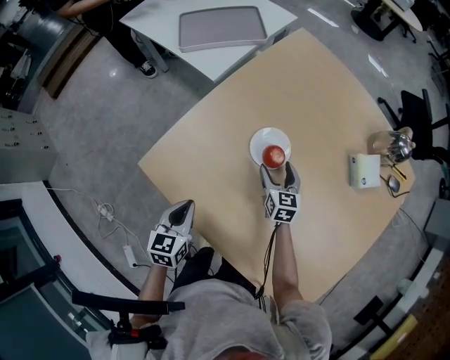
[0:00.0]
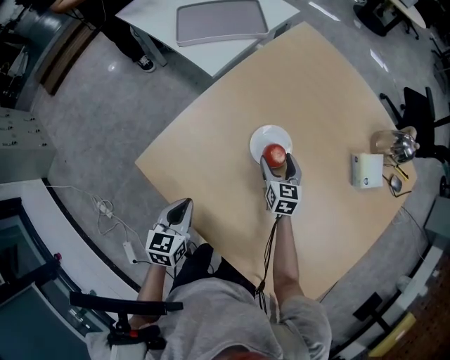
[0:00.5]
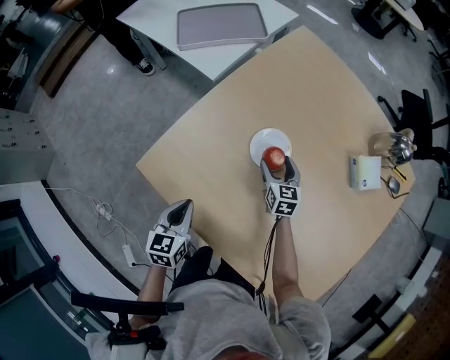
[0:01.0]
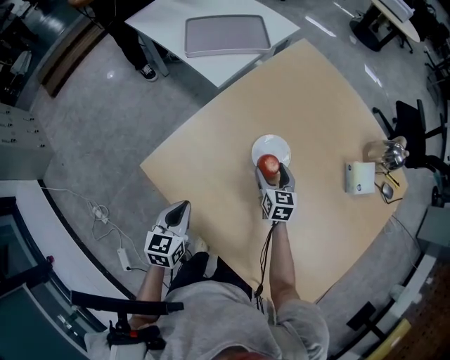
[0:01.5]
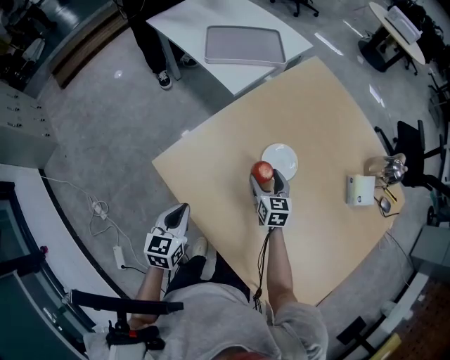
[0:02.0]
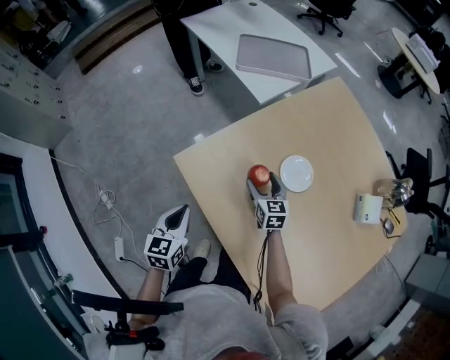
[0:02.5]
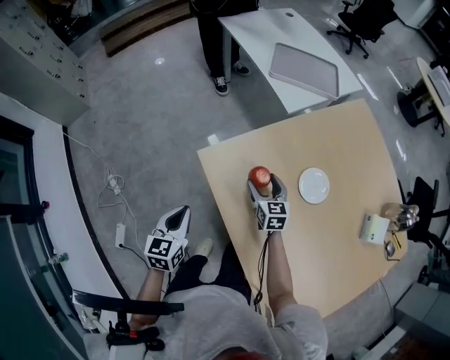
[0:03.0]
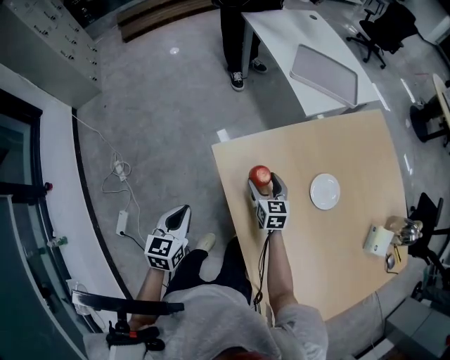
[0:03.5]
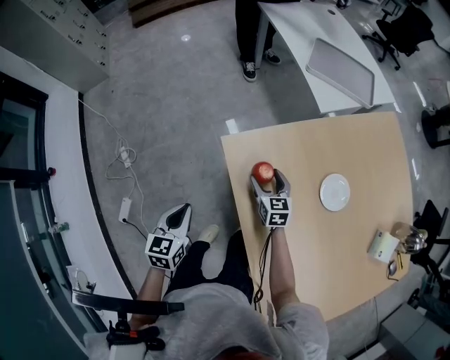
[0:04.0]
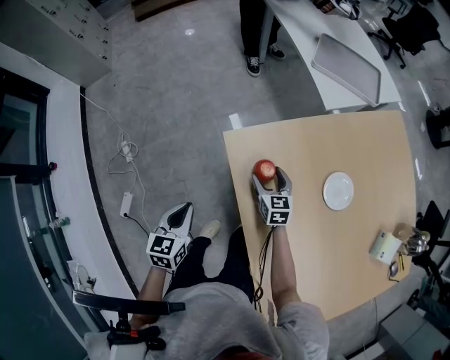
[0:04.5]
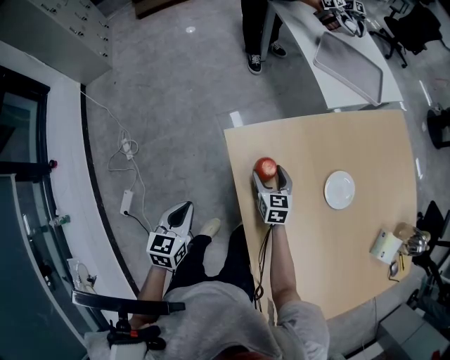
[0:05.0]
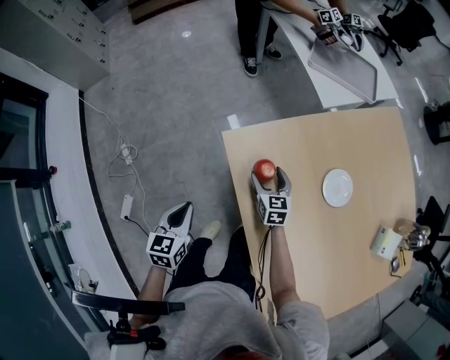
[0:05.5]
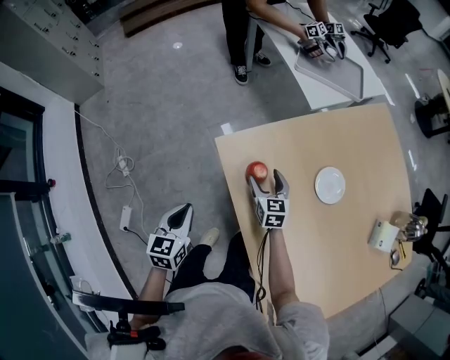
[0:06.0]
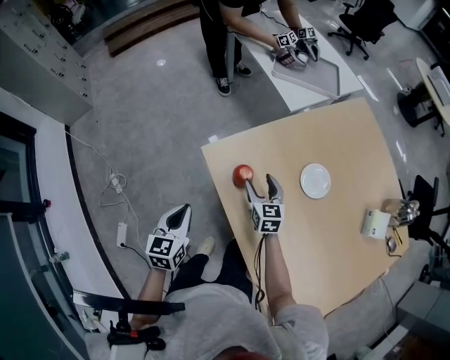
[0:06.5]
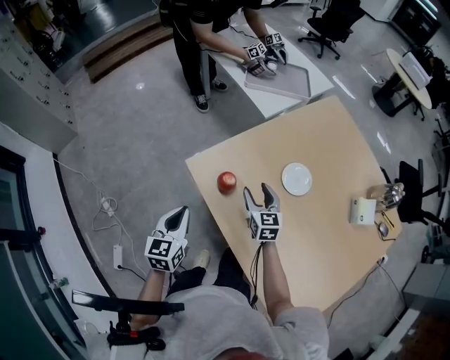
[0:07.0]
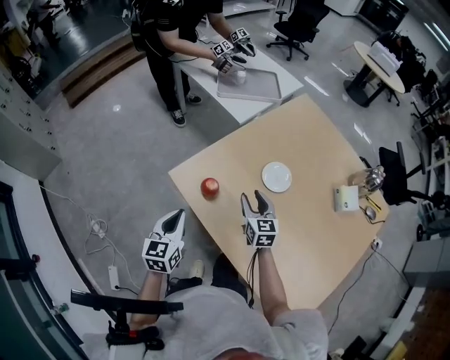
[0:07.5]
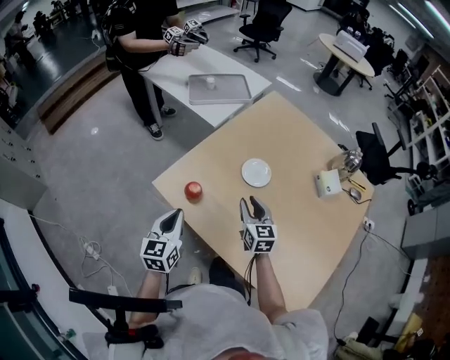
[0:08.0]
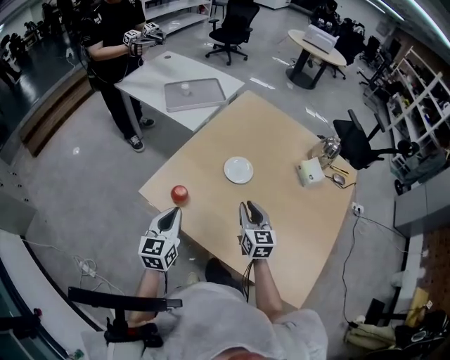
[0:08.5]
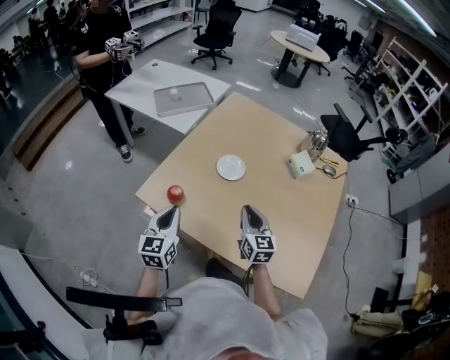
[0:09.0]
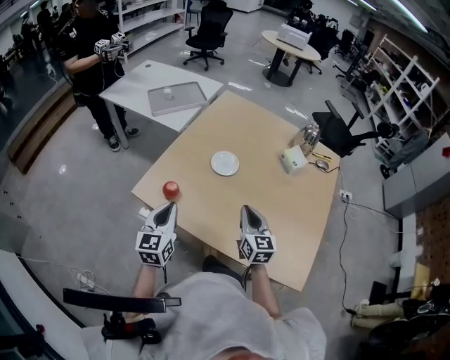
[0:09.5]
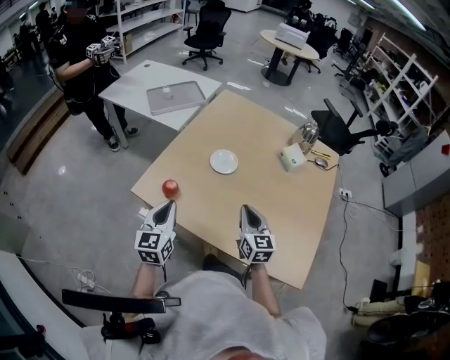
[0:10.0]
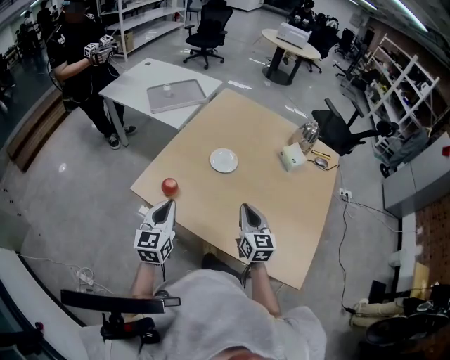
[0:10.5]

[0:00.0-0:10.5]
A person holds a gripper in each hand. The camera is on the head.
0:00.0 to 0:02.0: Both grippers travel together to the left, some 5 cm.
0:02.0 to 0:04.0: The right gripper moves some 25 cm, and swivels roughly 30 degrees. Meanwhile the left gripper changes place by roughly 20 cm, and turns by approximately 20 degrees.
0:04.0 to 0:06.5: The right gripper travels upward by approximately 5 cm. The left gripper moves roughly 5 cm.
0:06.5 to 0:08.5: The right gripper shifts by approximately 25 cm, changes its angle by approximately 30 degrees, and closes up. The left gripper moves about 15 cm, and changes its angle by some 30 degrees.
0:08.5 to 0:10.5: The right gripper heads backward, covering about 10 cm.

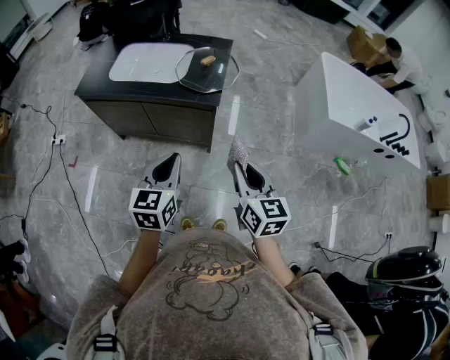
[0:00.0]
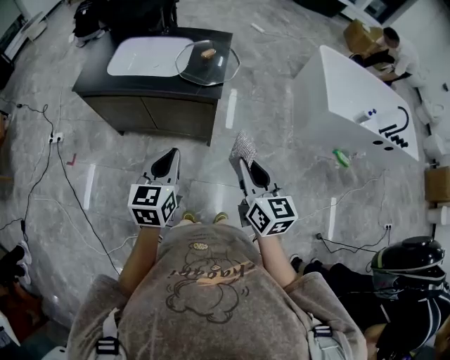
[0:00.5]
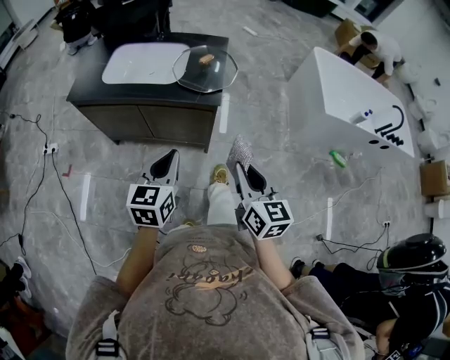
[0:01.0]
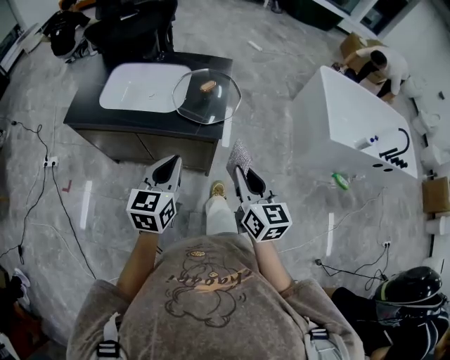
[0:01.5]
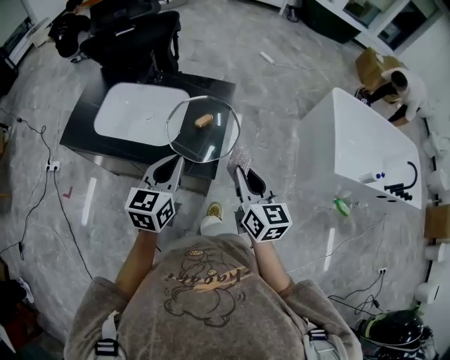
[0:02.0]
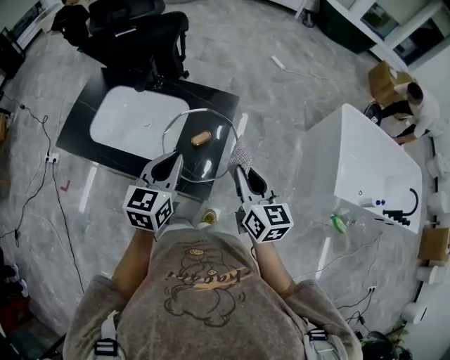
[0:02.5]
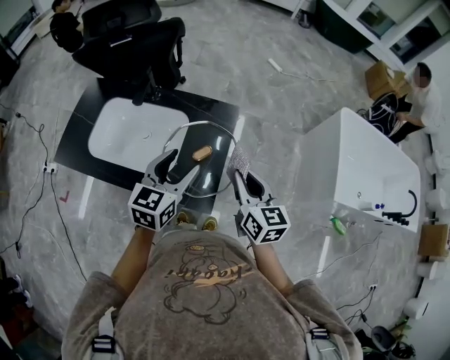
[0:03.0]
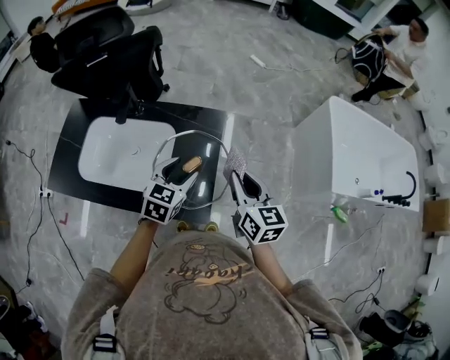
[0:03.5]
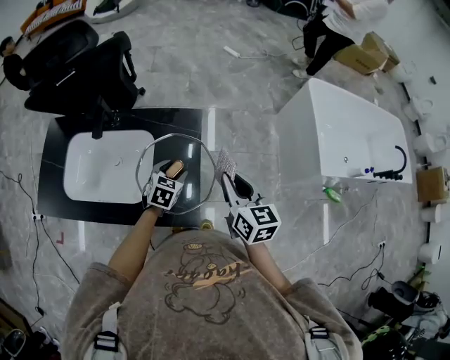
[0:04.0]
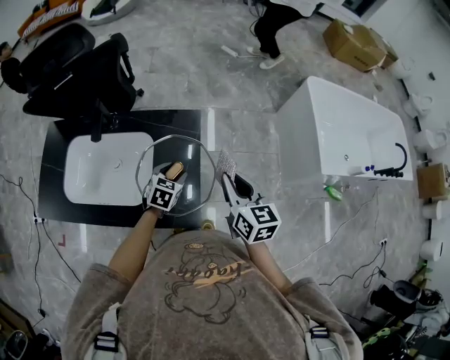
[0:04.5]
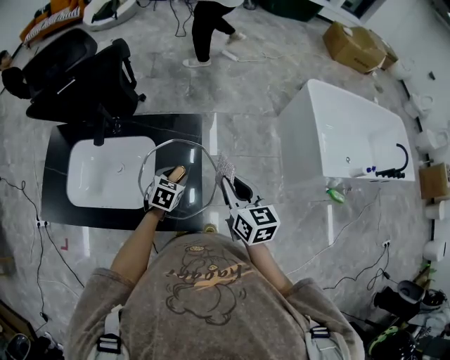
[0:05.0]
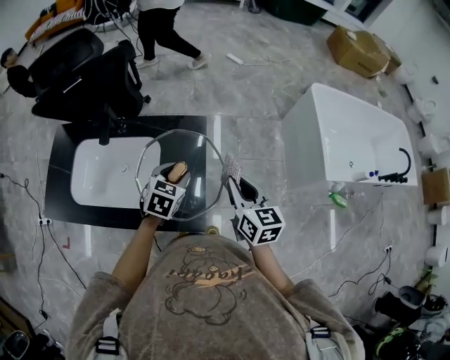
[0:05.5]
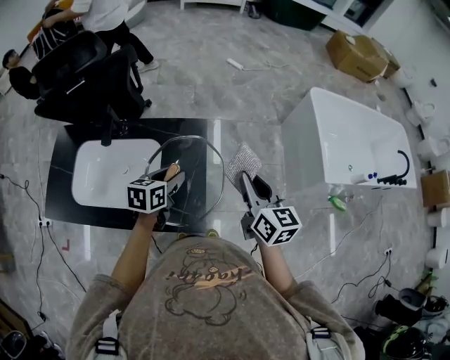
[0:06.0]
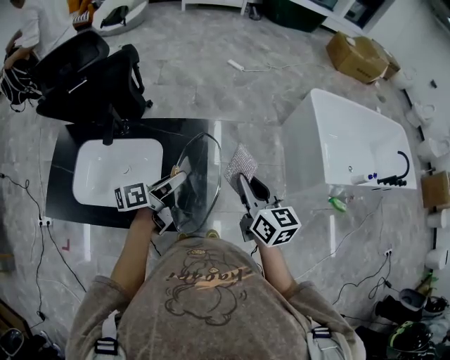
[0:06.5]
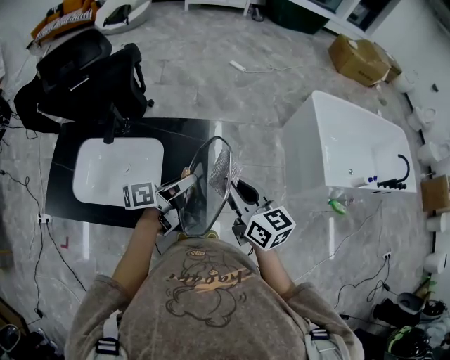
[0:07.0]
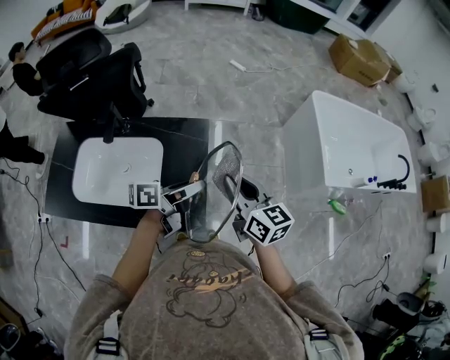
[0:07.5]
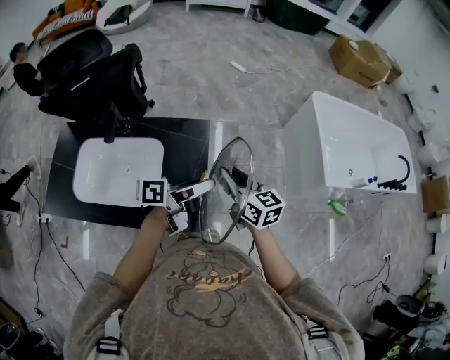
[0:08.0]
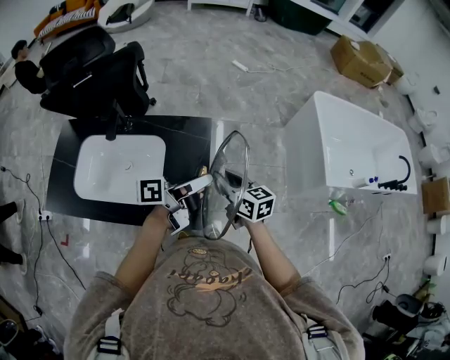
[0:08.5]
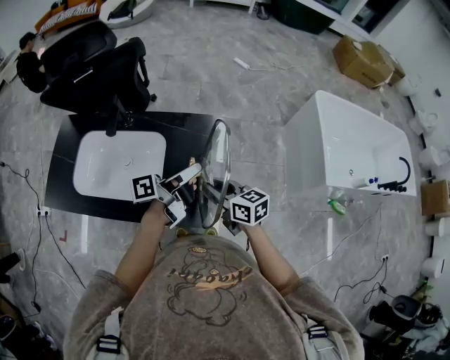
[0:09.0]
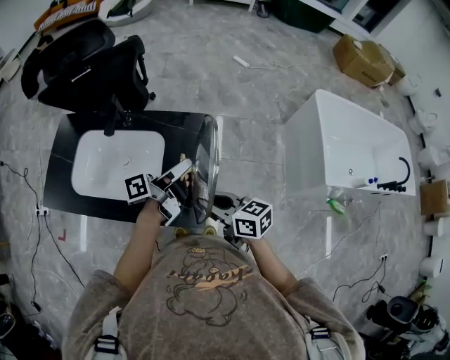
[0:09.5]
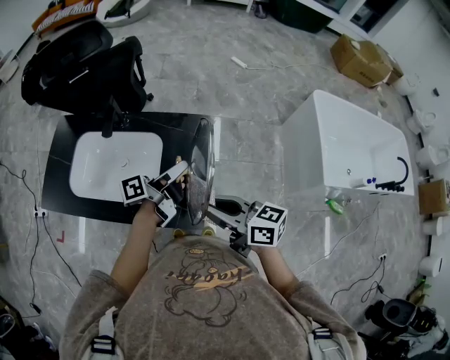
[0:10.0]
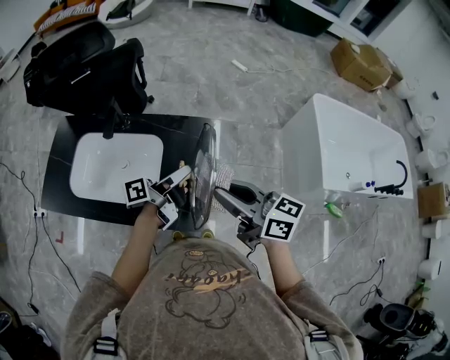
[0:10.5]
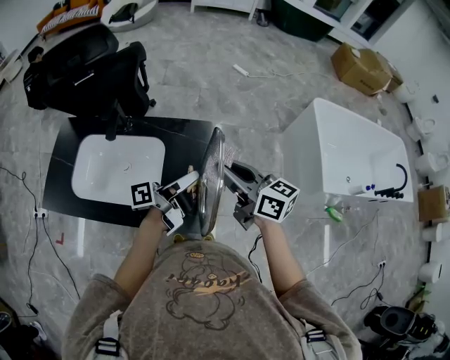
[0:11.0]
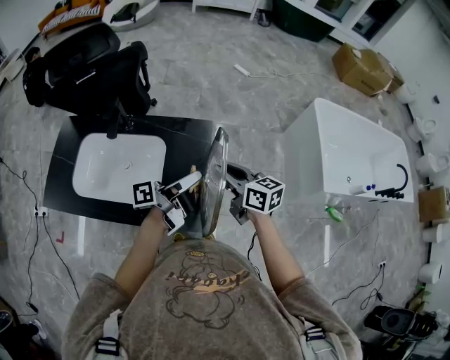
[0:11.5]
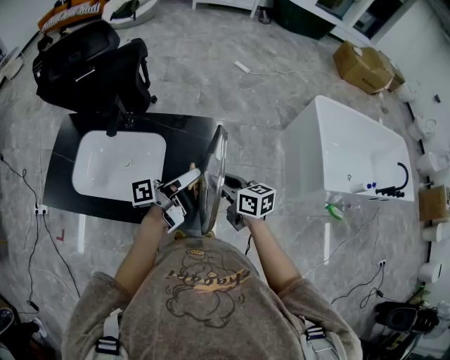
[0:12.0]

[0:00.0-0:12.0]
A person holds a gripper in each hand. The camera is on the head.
0:00.0 to 0:02.0: The two grippers go some 30 cm forward.
0:02.0 to 0:04.0: The right gripper moves forward, some 15 cm, while the left gripper is displaced forward and downward by about 30 cm, swivels approximately 40 degrees, and opens.
0:04.0 to 0:06.0: The left gripper goes about 10 cm upward, and turns by roughly 30 degrees. The right gripper shifts by roughly 5 cm.
0:06.0 to 0:08.0: The left gripper moves to the right and upward, roughly 15 cm, and tilts its fingers about 40 degrees upward; the right gripper shifts approximately 5 cm to the left.
0:08.0 to 0:10.0: The right gripper moves roughly 5 cm downward and comes back, and changes its angle by approximately 30 degrees. Meanwhile the left gripper shifts by about 10 cm, and swivels some 20 degrees.
0:10.0 to 0:12.0: The right gripper shifts approximately 15 cm forward and downward.

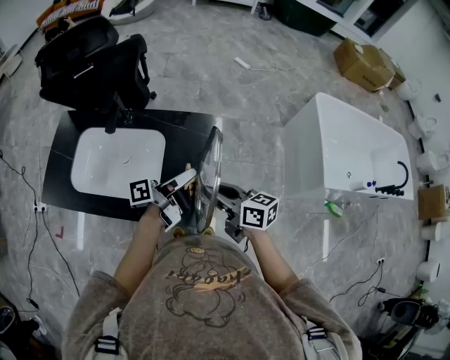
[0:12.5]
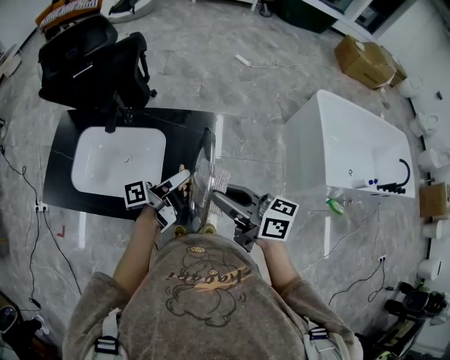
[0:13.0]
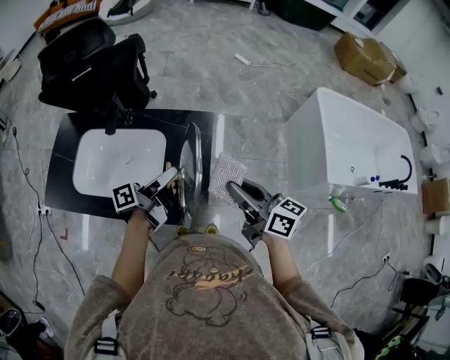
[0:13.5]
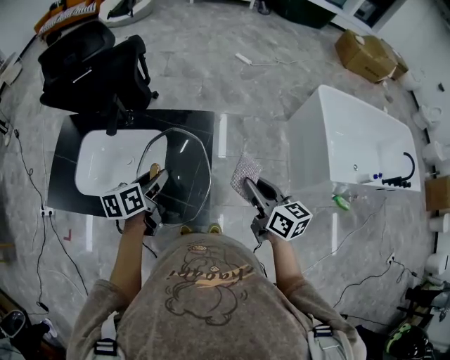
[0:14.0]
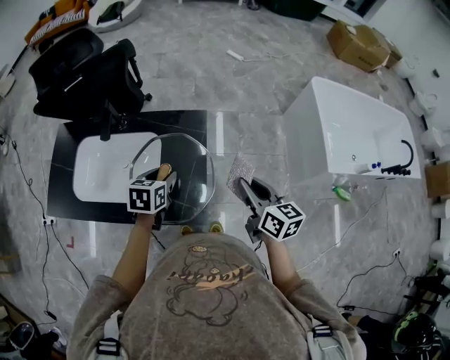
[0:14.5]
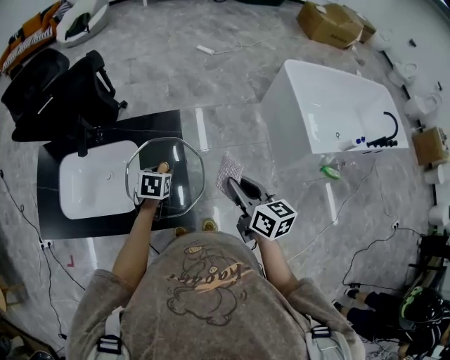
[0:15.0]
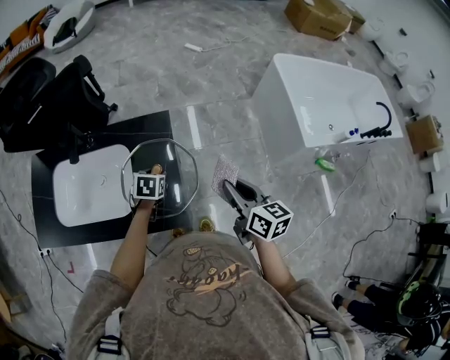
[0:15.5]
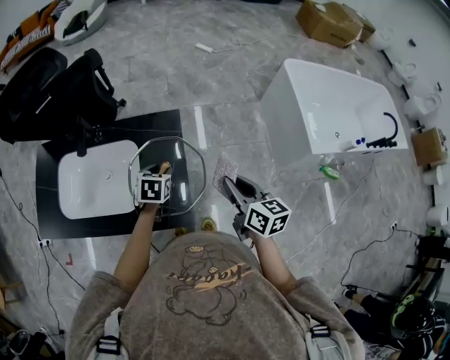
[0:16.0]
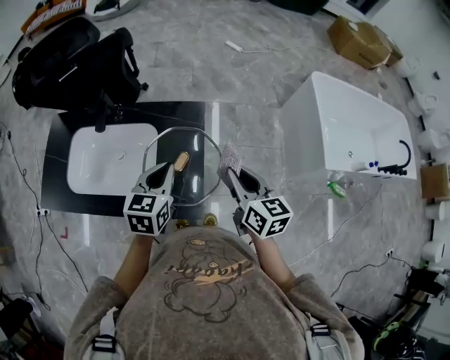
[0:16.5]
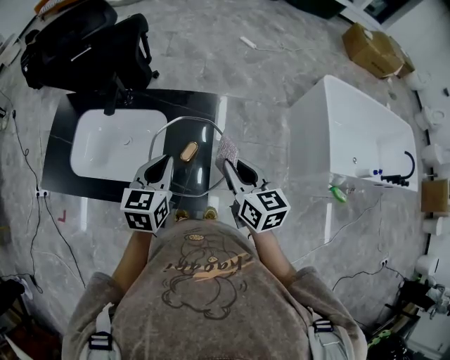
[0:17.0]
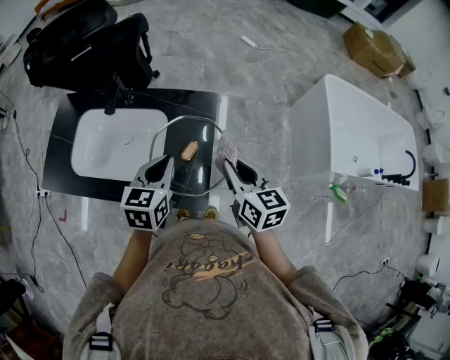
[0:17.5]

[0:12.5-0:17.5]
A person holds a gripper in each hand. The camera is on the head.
0:12.5 to 0:15.0: The left gripper shifts roughly 15 cm downward, and points its fingers some 70 degrees further downward, while the right gripper goes roughly 15 cm to the right, and rotates roughly 30 degrees.
0:15.0 to 0:17.5: The left gripper moves upward, about 15 cm, changes its angle by about 30 degrees, and closes up. Meanwhile the right gripper heads to the left, covering roughly 10 cm.
